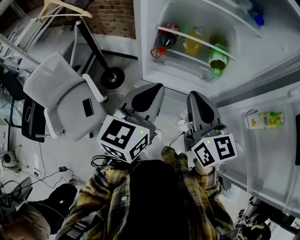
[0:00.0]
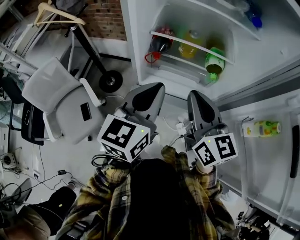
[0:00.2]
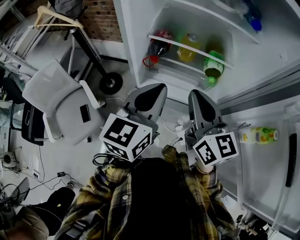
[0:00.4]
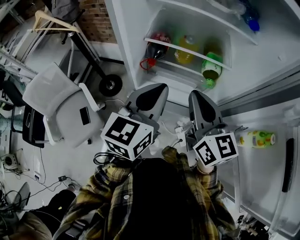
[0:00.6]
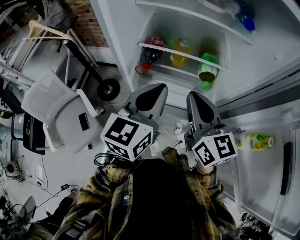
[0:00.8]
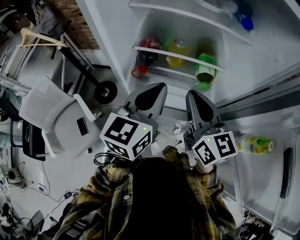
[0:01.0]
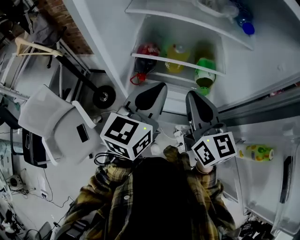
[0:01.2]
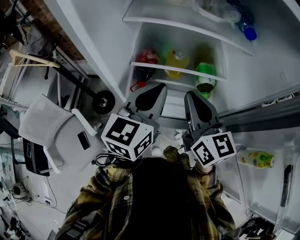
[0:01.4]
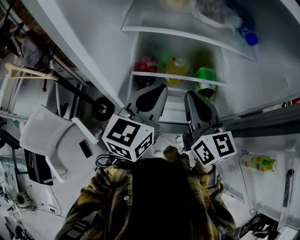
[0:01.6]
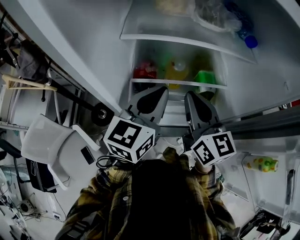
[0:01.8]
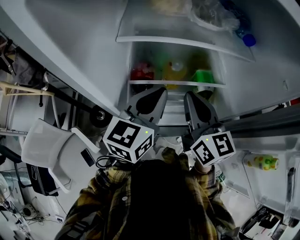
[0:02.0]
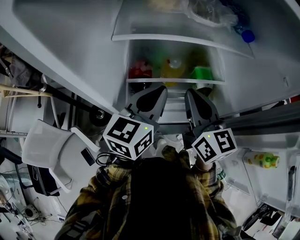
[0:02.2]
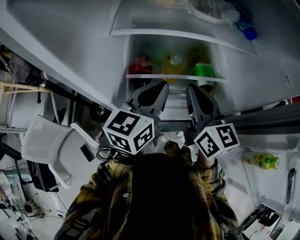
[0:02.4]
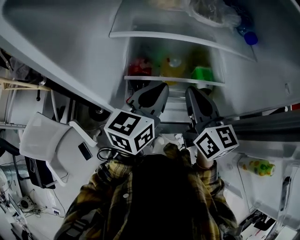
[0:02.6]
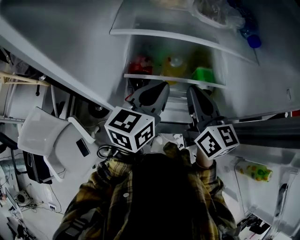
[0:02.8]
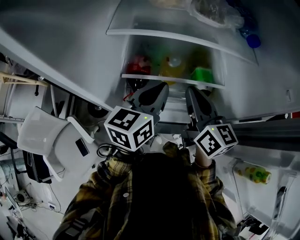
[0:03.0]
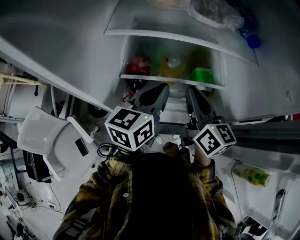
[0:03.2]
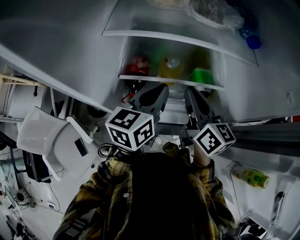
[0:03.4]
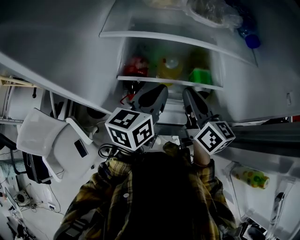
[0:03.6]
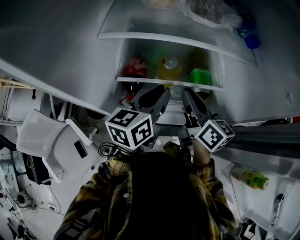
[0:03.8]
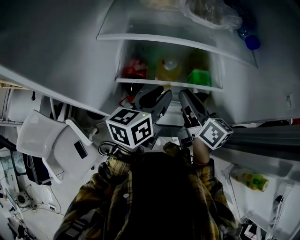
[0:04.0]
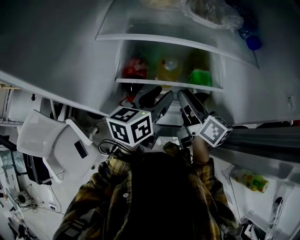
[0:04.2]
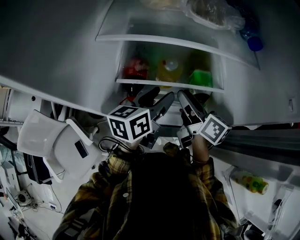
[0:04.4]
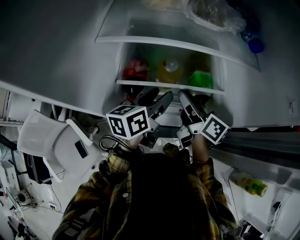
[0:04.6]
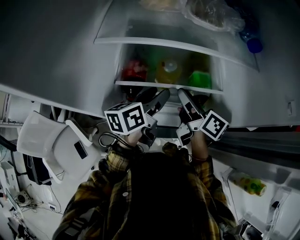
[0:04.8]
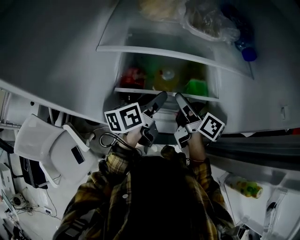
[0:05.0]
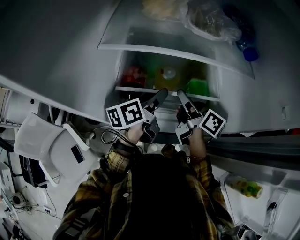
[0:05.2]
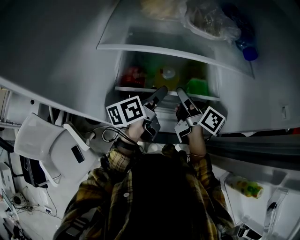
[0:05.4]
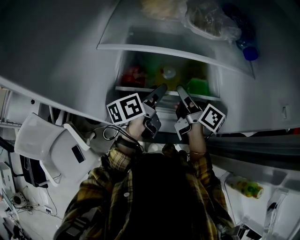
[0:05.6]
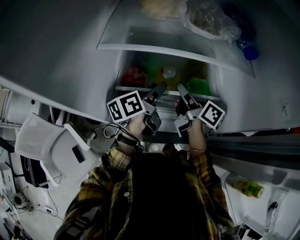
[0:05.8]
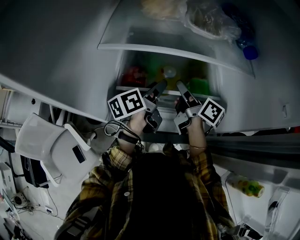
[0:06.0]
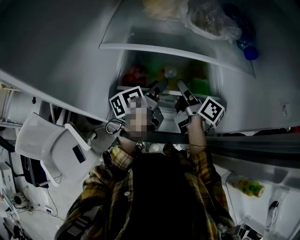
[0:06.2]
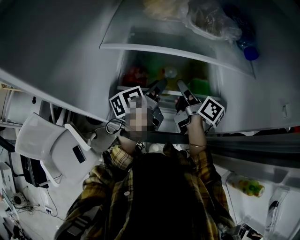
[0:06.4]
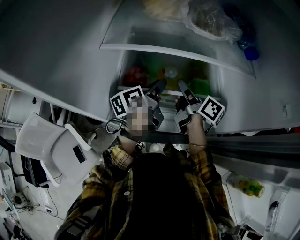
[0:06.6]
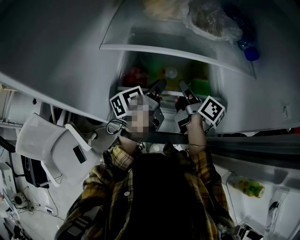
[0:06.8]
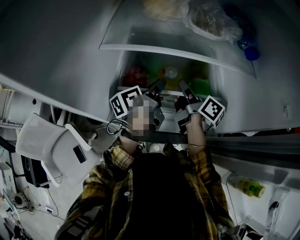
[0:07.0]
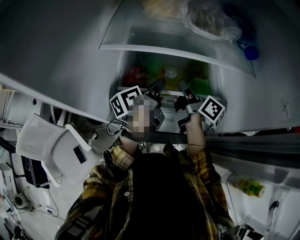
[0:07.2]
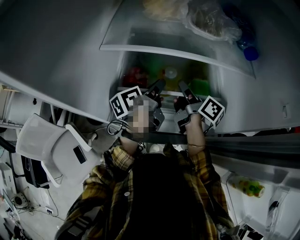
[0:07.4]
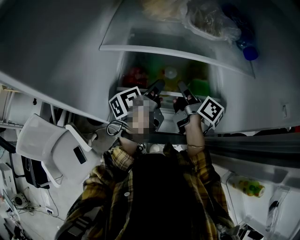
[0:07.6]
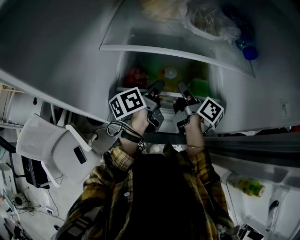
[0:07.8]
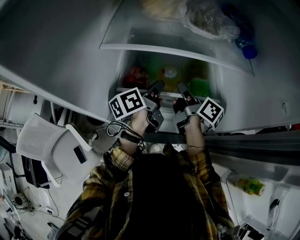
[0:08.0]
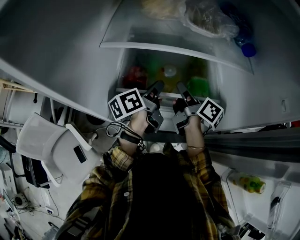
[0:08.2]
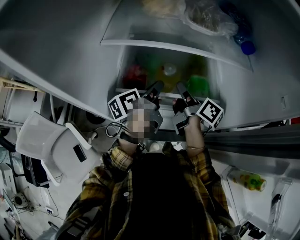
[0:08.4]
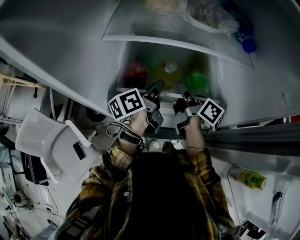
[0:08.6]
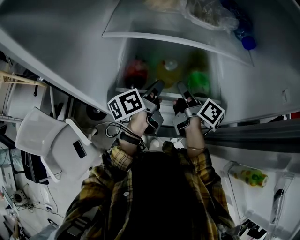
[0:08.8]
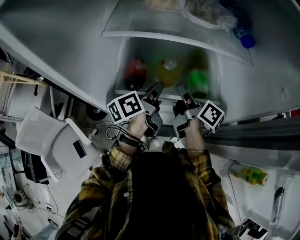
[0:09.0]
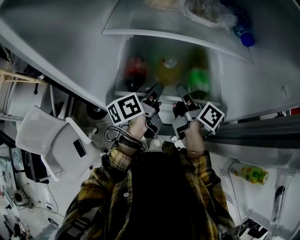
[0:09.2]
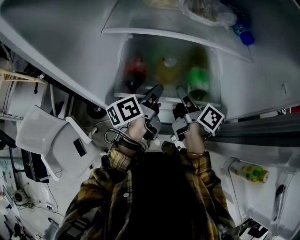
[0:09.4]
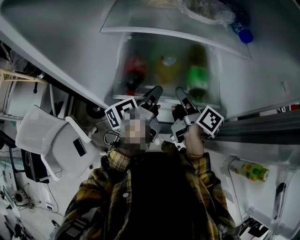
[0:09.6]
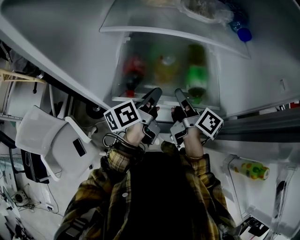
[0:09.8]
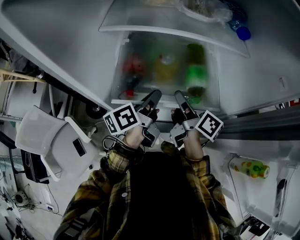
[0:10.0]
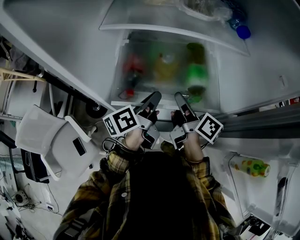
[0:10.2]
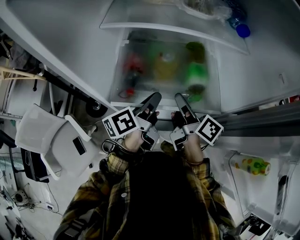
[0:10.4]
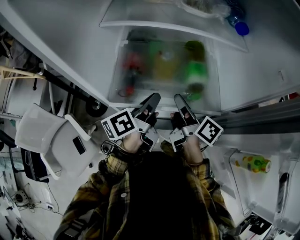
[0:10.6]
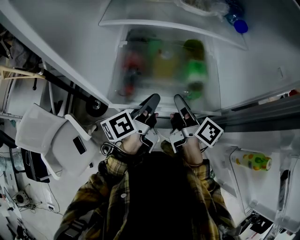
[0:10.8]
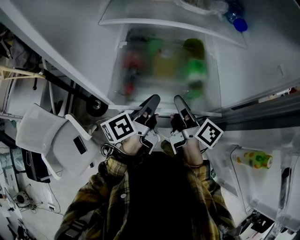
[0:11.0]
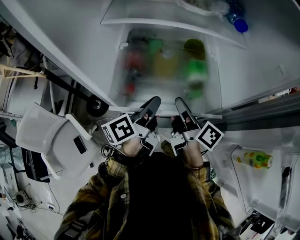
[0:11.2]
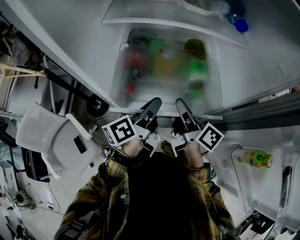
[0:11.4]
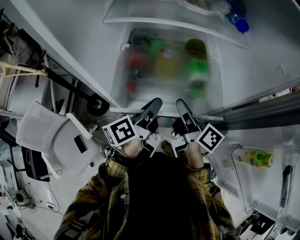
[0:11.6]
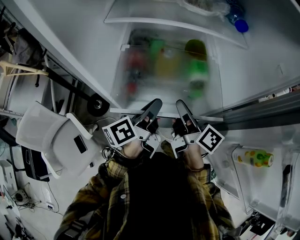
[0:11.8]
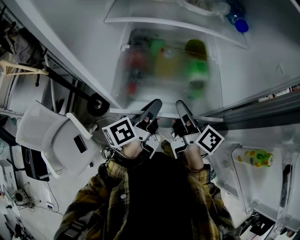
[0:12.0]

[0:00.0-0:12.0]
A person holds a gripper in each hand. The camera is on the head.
0:00.0 to 0:01.6: The grippers both shift forward by some 20 cm.
0:01.6 to 0:03.0: The left gripper ends up some 5 cm from where it was. Meanwhile the right gripper shifts about 5 cm forward.
0:03.0 to 0:04.4: The grippers both shift downward by approximately 5 cm. The left gripper opens up, while the right gripper rotates about 30 degrees, and opens its fingers.
0:04.4 to 0:06.0: Both grippers travel together forward, about 5 cm. The left gripper changes its angle by approximately 30 degrees.
0:06.0 to 0:07.6: The left gripper closes up, while the right gripper closes.
0:07.6 to 0:09.0: Both grippers move backward, approximately 5 cm.
0:09.0 to 0:10.4: Both grippers move backward, approximately 5 cm.
0:10.4 to 0:12.0: The grippers stay close to where they were, moving slightly.

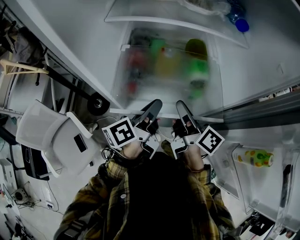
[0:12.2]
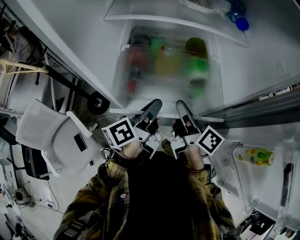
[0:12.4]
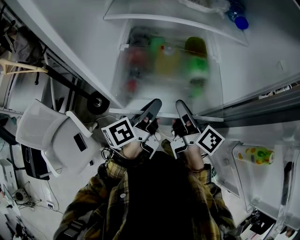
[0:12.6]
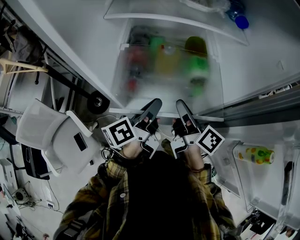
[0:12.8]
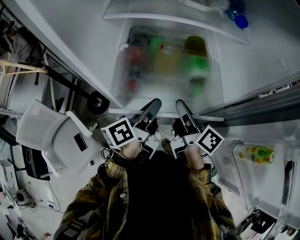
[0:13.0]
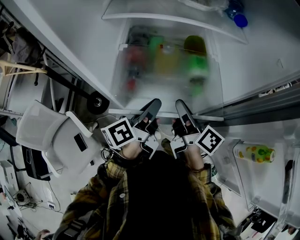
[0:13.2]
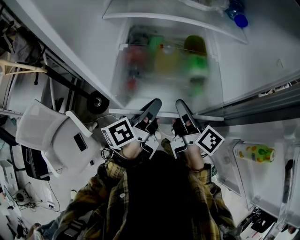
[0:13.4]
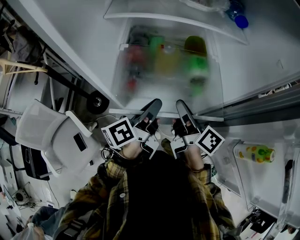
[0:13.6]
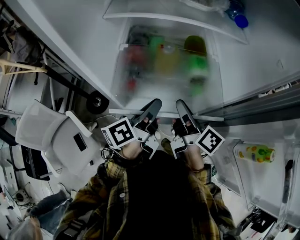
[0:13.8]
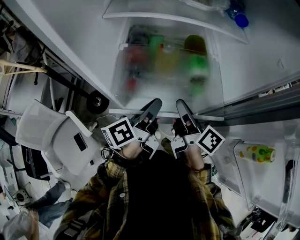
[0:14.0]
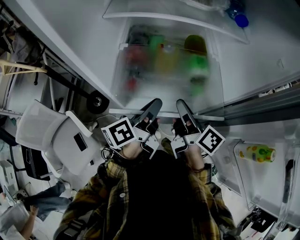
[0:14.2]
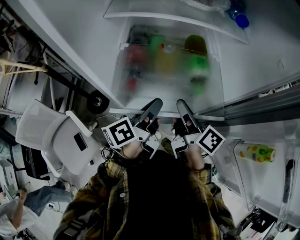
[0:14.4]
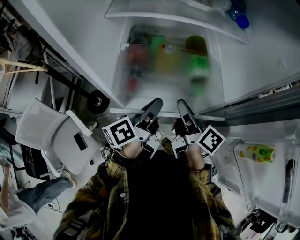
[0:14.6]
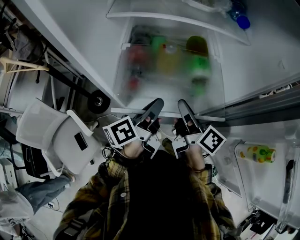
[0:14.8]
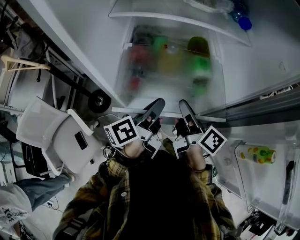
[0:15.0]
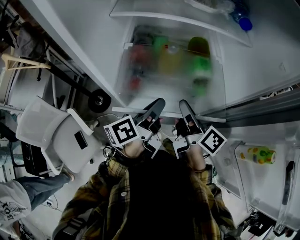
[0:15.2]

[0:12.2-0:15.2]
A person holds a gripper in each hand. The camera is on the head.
0:12.2 to 0:13.8: The grippers stay close to where they were, moving slightly.
0:13.8 to 0:15.2: Both grippers stay about where they are.

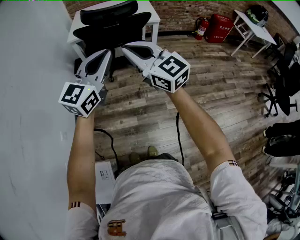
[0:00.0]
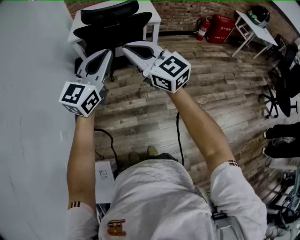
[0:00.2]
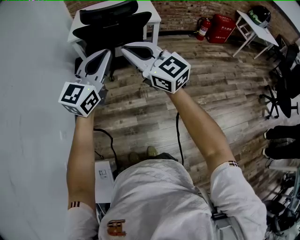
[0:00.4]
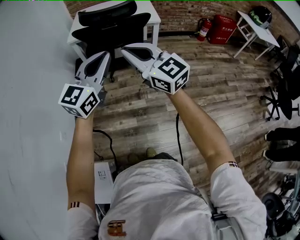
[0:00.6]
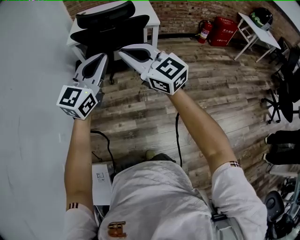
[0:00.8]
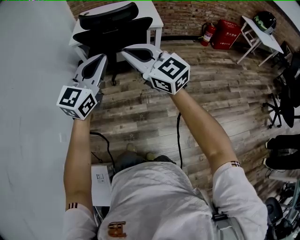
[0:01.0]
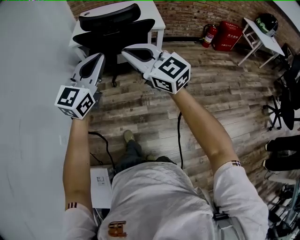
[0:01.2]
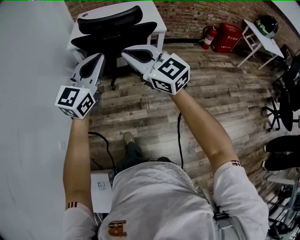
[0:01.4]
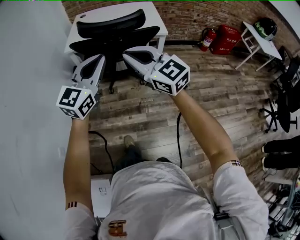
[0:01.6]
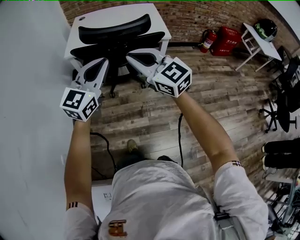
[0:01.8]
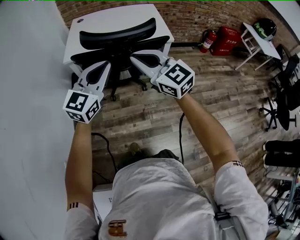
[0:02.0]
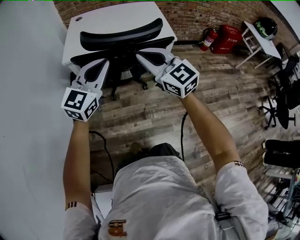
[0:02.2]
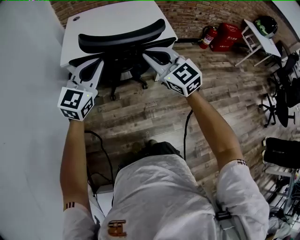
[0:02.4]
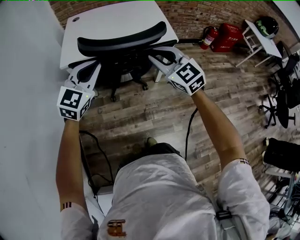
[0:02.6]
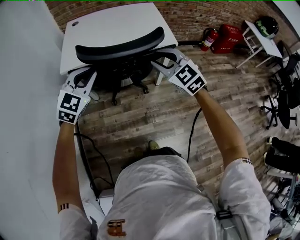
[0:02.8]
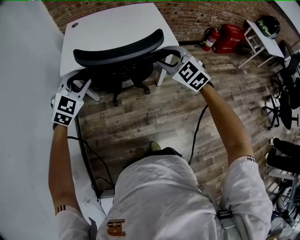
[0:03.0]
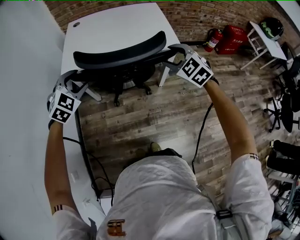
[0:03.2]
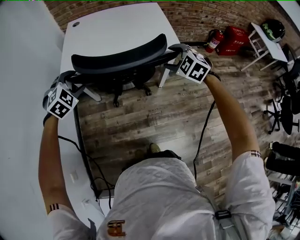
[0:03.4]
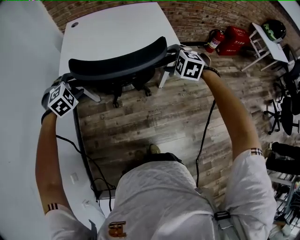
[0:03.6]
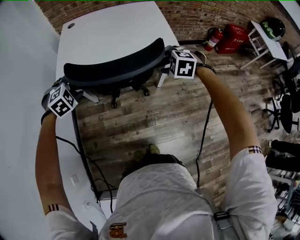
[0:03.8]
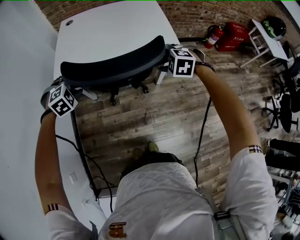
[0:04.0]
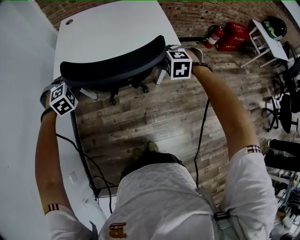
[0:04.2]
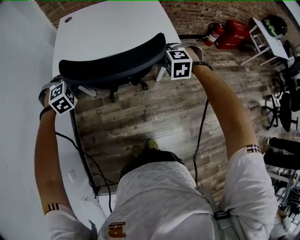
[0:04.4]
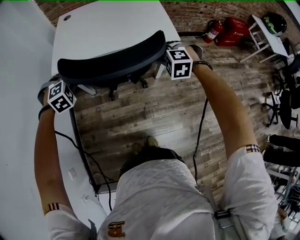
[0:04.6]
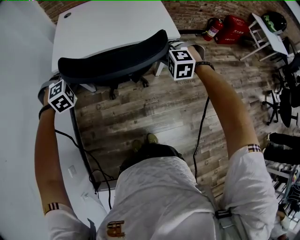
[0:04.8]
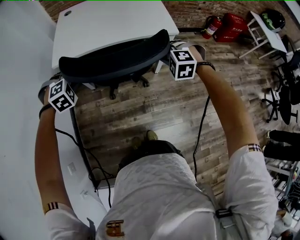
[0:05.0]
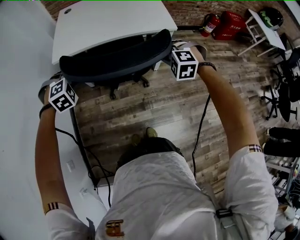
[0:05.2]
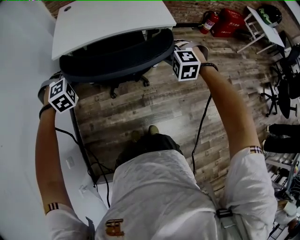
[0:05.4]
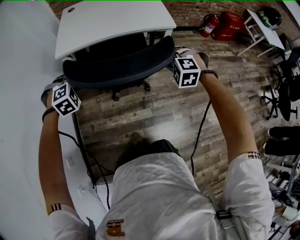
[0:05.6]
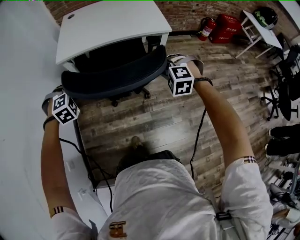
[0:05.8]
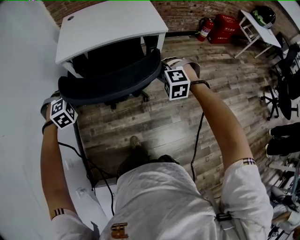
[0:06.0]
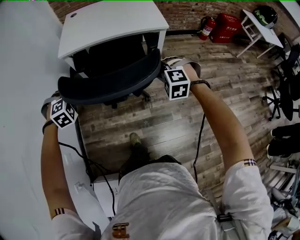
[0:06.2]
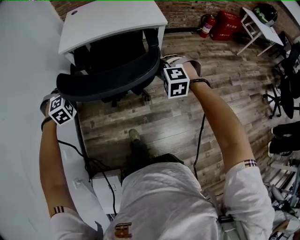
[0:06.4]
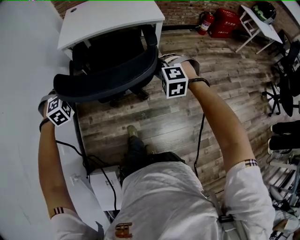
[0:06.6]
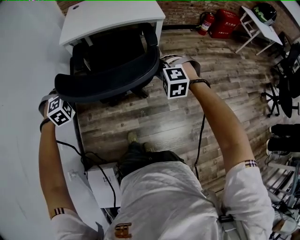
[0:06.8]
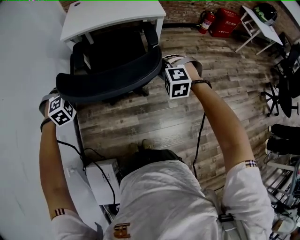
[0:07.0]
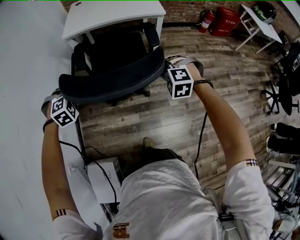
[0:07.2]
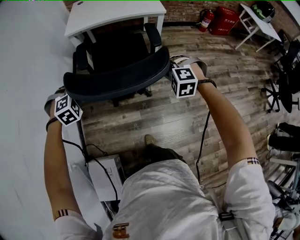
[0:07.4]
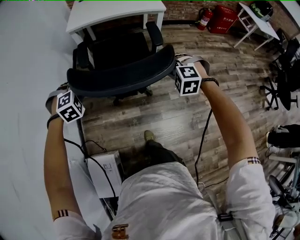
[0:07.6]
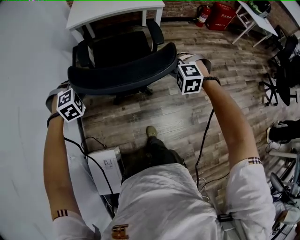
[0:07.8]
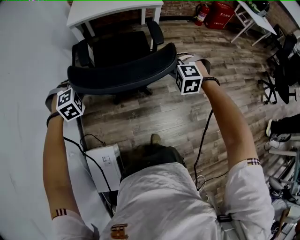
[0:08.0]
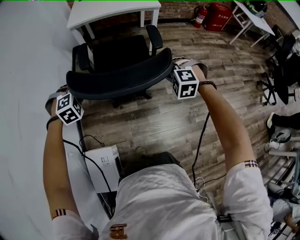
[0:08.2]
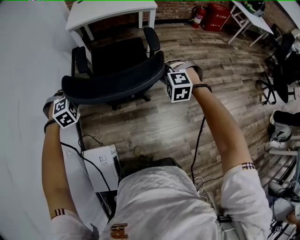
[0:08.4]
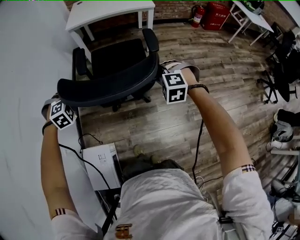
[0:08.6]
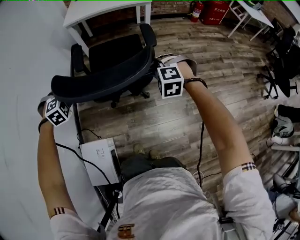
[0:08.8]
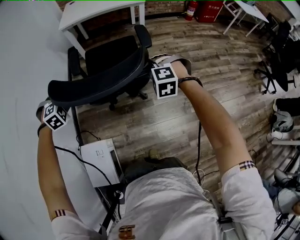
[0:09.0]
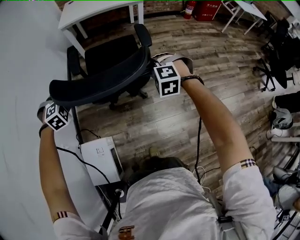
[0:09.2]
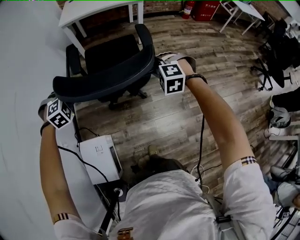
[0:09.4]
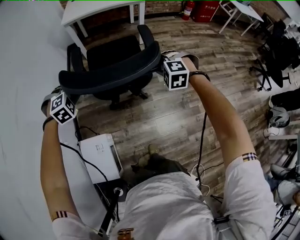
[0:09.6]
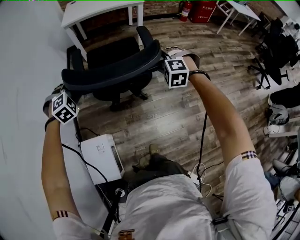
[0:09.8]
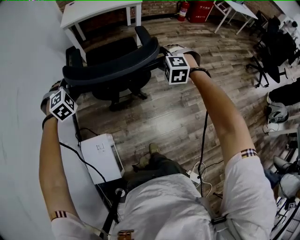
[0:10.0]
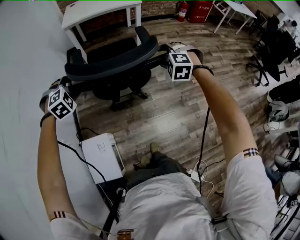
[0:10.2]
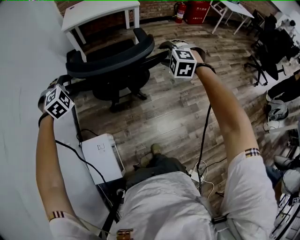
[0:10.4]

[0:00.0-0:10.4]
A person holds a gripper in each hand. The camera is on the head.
0:00.0 to 0:01.4: Both grippers travel together forward, about 10 cm.
0:01.4 to 0:03.0: The right gripper shifts approximately 30 cm forward, swivels about 40 degrees, and opens up. The left gripper moves forward, to the left and downward, roughly 35 cm, tilts its fingers about 30 degrees downward, and opens.
0:03.0 to 0:04.4: The grippers both shift downward and forward by approximately 15 cm. The right gripper angles its fingers downward, by roughly 30 degrees, and opens and closes again. The left gripper tilts its fingers about 30 degrees downward, and opens, then closes again.
0:04.4 to 0:06.0: Both grippers move backward, some 20 cm.
0:06.0 to 0:07.4: The grippers both shift backward by roughly 25 cm.
0:07.4 to 0:09.0: Both grippers travel together backward, some 20 cm.
0:09.0 to 0:10.4: Both grippers travel together backward and upward, about 10 cm. The left gripper opens up. Meanwhile the right gripper opens up.
